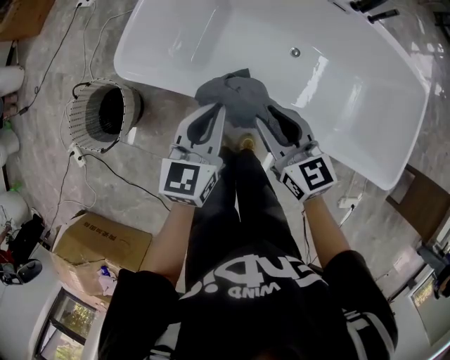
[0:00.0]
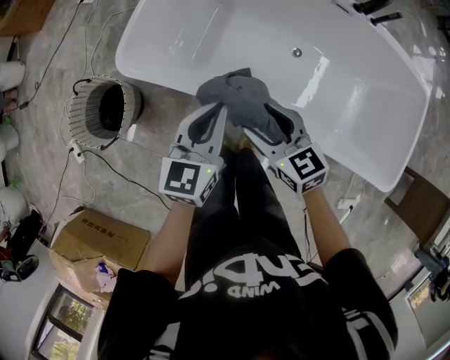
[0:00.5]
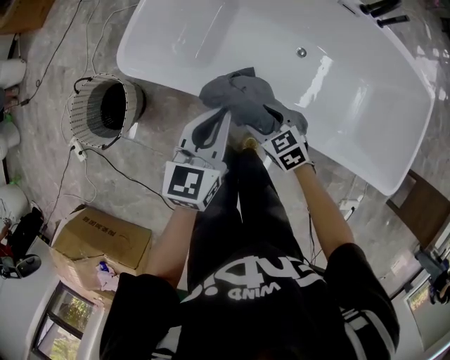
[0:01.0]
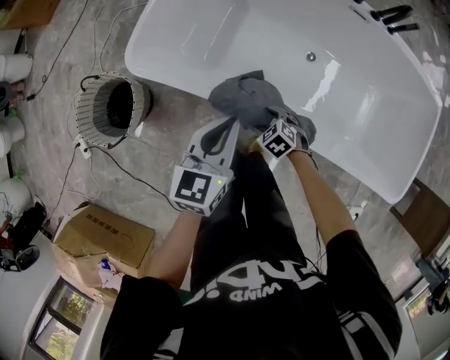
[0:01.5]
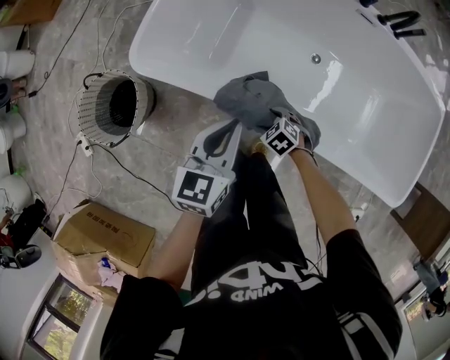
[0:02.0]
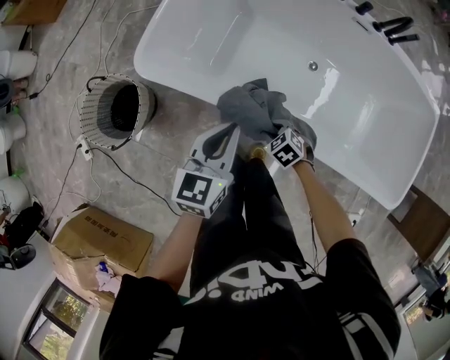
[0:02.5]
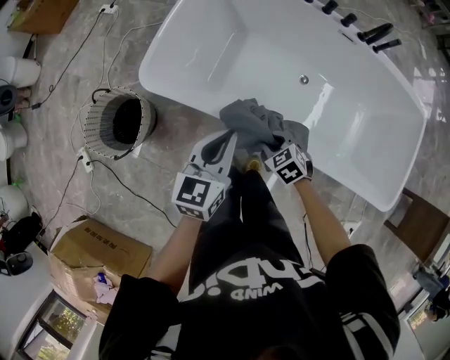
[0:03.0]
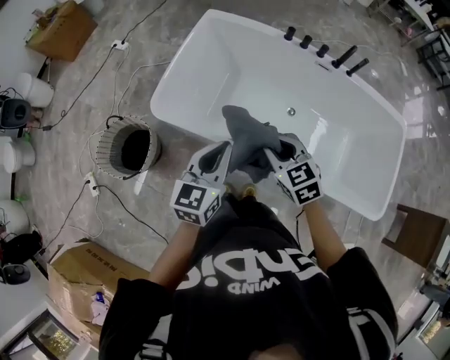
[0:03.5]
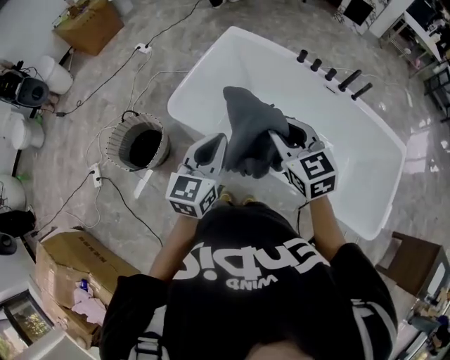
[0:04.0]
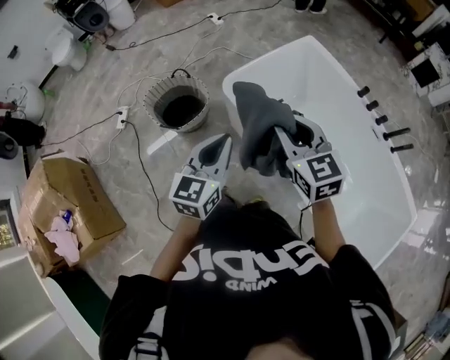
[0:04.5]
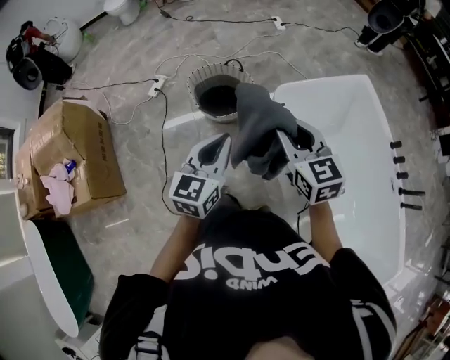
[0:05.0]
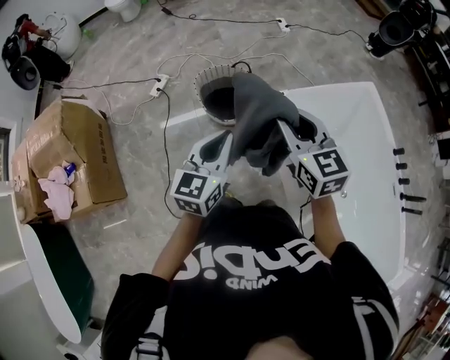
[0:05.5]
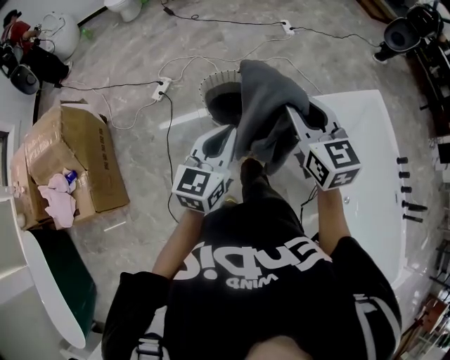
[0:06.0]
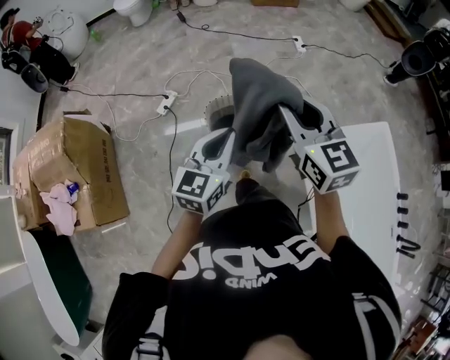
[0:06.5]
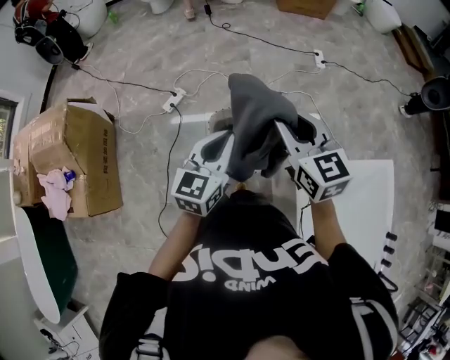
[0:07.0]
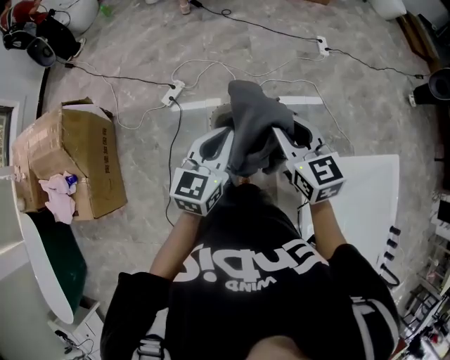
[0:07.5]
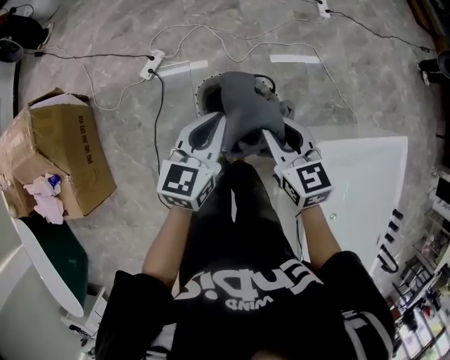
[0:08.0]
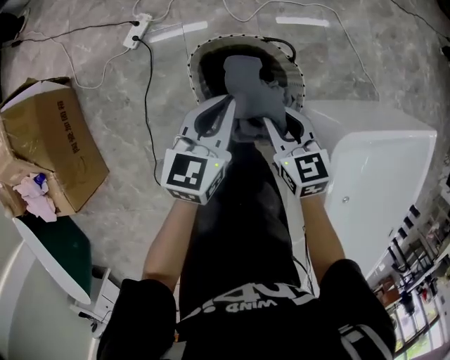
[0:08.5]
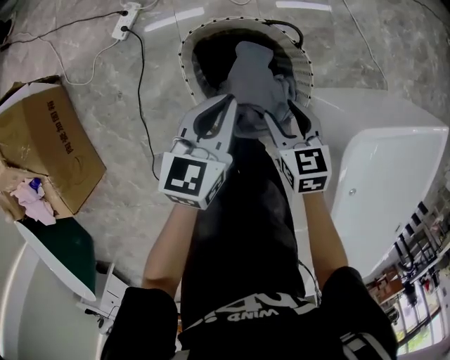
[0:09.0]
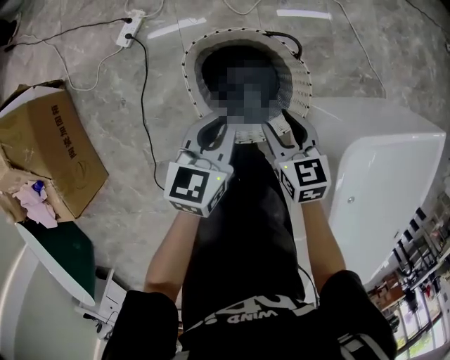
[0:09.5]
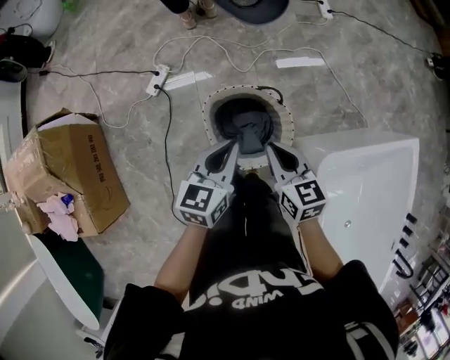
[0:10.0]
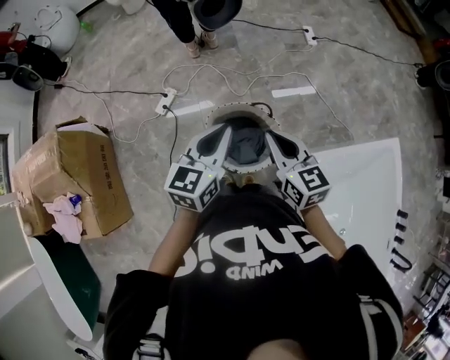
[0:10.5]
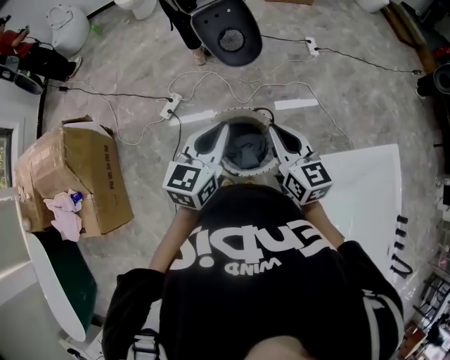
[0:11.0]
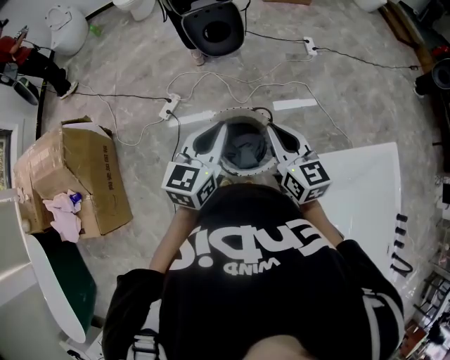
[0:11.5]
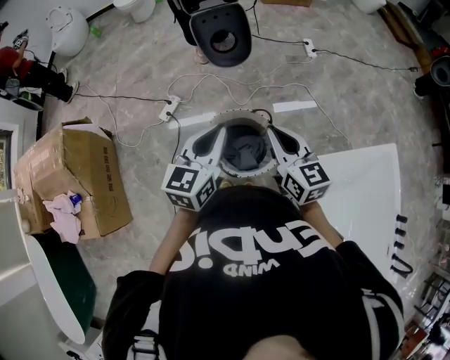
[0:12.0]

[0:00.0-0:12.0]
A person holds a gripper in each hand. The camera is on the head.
0:00.0 to 0:02.0: The right gripper heads downward, covering some 30 cm, tips its fingers downward by some 50 degrees, and opens its fingers.
0:02.0 to 0:04.0: The right gripper is displaced upward by some 50 cm, points its fingers about 40 degrees further upward, and closes, while the left gripper heads upward, covering about 20 cm.
0:04.0 to 0:06.0: The two grippers travel together, about 40 cm. The left gripper turns by approximately 40 degrees; the right gripper changes its angle by some 40 degrees.
0:06.0 to 0:08.0: The left gripper is displaced forward by some 35 cm. The right gripper is displaced forward and downward by about 35 cm, and changes its angle by roughly 20 degrees.
0:08.0 to 0:10.0: The left gripper reaches some 25 cm downward, then returns. Meanwhile the right gripper reaches about 30 cm downward, then returns, and opens and closes again.
0:10.0 to 0:12.0: The grippers both shift upward by approximately 20 cm.

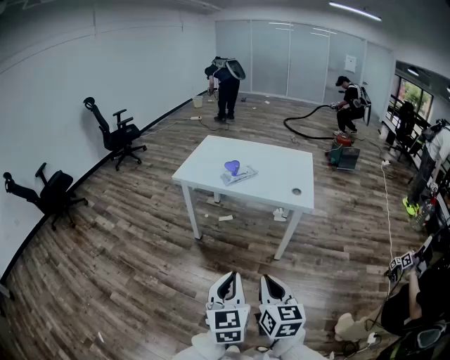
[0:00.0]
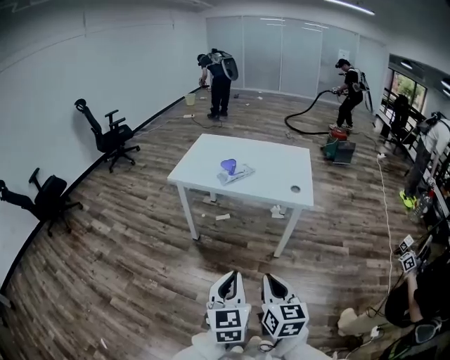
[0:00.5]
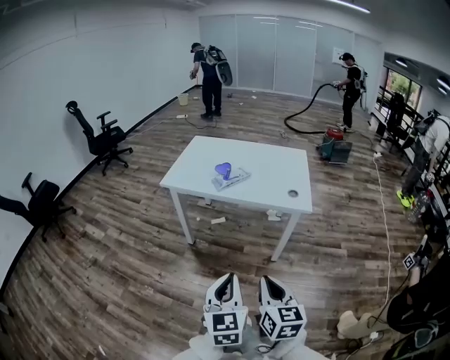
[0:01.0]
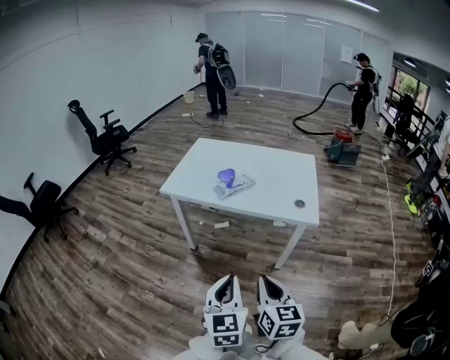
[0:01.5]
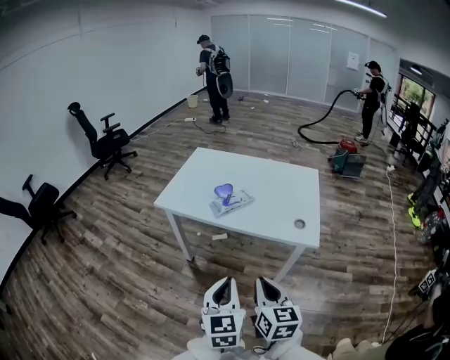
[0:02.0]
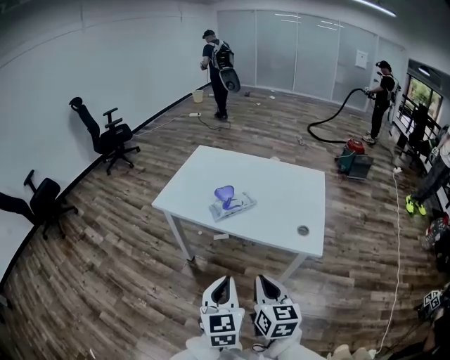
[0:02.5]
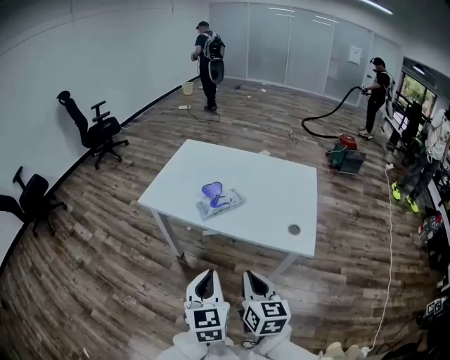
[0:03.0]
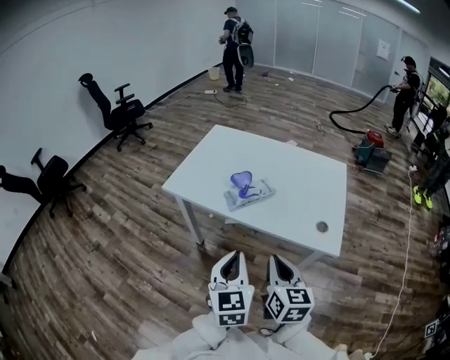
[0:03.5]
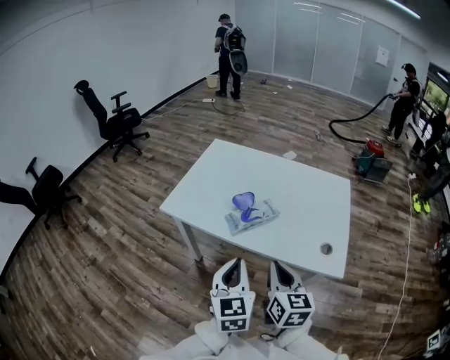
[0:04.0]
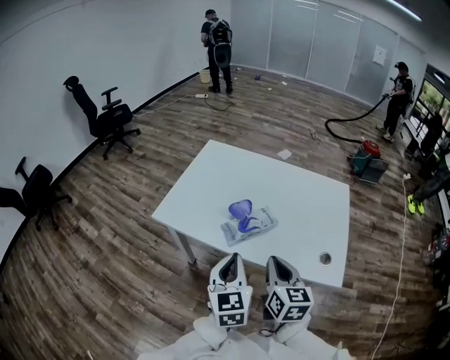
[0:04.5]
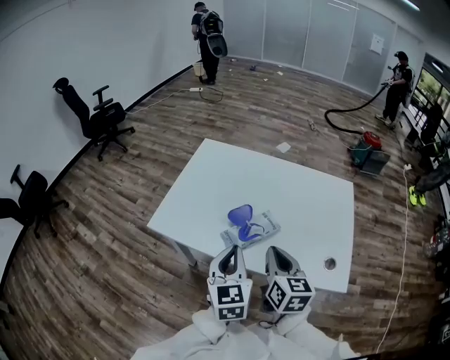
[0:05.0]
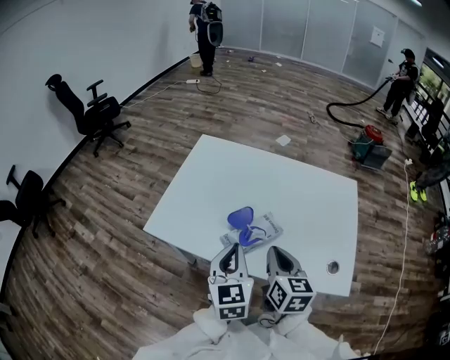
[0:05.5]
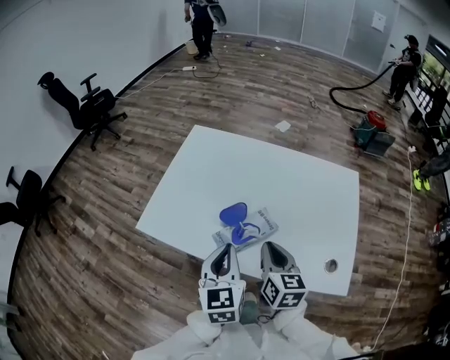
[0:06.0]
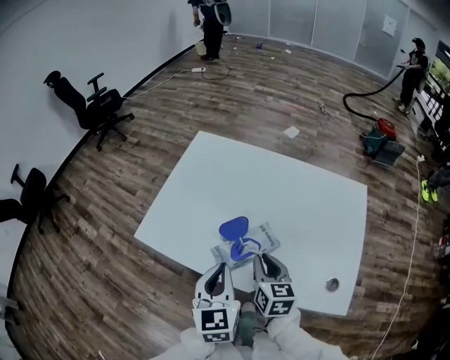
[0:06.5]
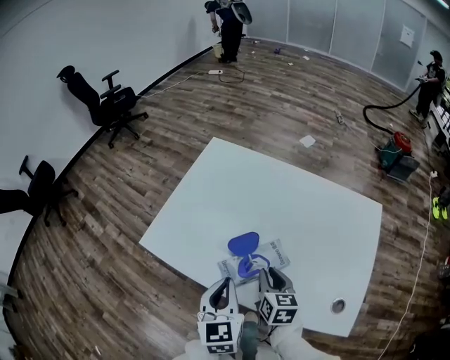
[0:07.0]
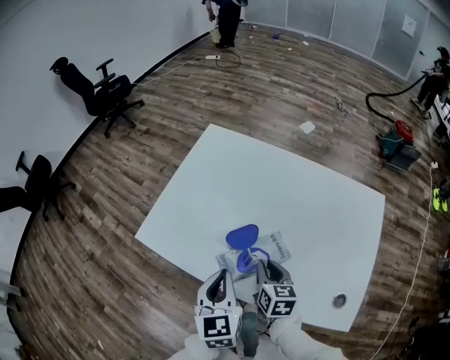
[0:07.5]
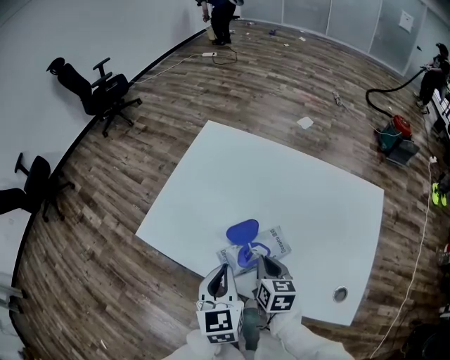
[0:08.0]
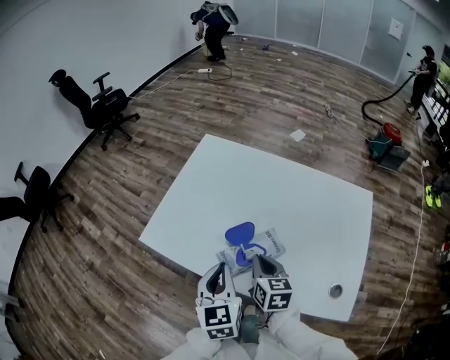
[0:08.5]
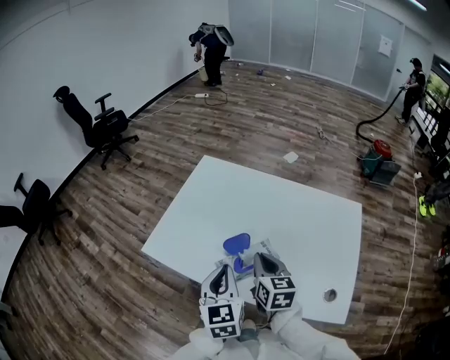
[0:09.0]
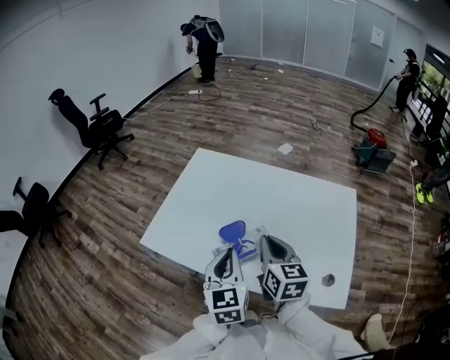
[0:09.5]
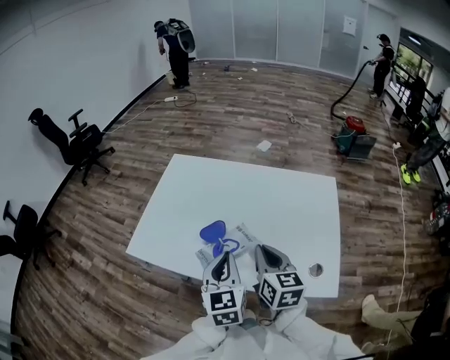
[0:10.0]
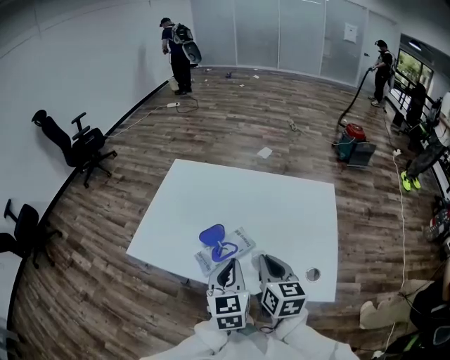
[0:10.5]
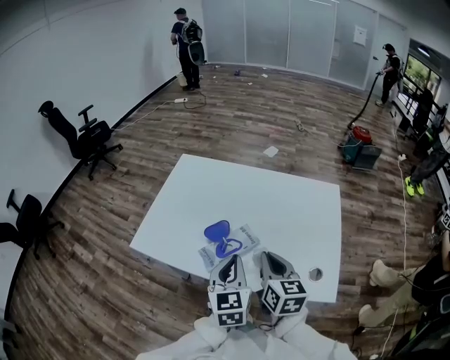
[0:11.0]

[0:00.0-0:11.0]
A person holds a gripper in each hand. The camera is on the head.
0:00.0 to 0:02.0: The grippers both shift forward by about 25 cm.
0:02.0 to 0:03.5: The grippers both shift forward by about 15 cm.
0:03.5 to 0:05.5: The two grippers go about 25 cm forward.
0:05.5 to 0:07.5: The right gripper heads downward and forward, covering about 15 cm. Meanwhile the left gripper shifts about 5 cm downward.
0:07.5 to 0:09.0: The left gripper heads upward, covering approximately 5 cm. Meanwhile the right gripper heads upward, covering some 10 cm.
0:09.0 to 0:11.0: The right gripper travels backward and to the right by approximately 10 cm; the left gripper travels to the right by some 10 cm.

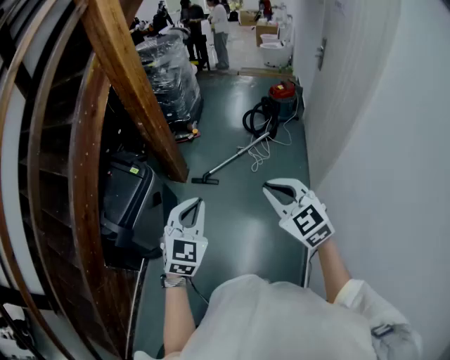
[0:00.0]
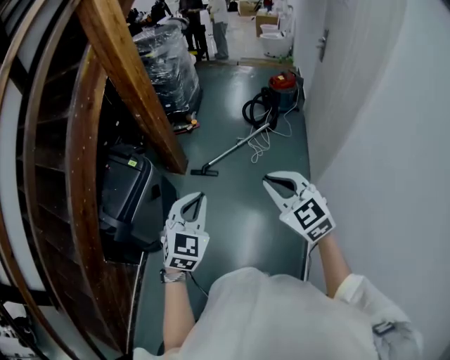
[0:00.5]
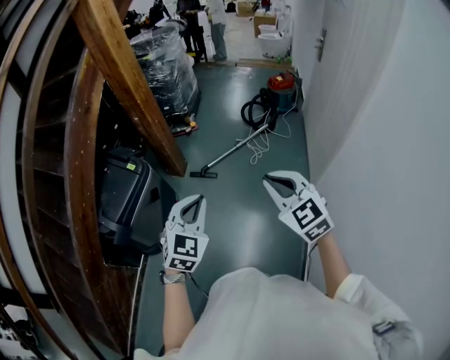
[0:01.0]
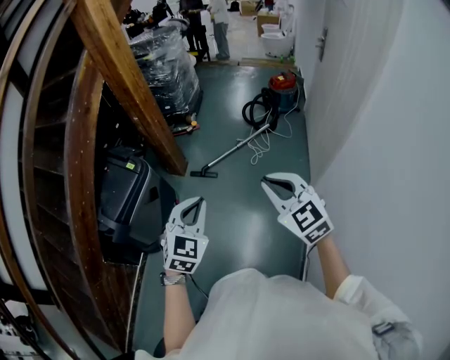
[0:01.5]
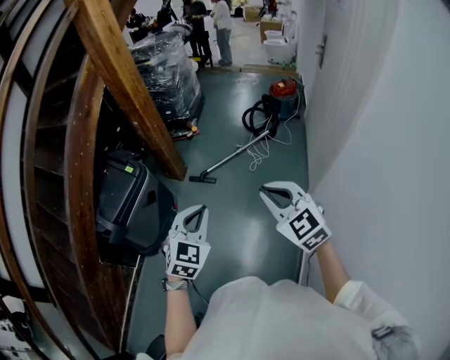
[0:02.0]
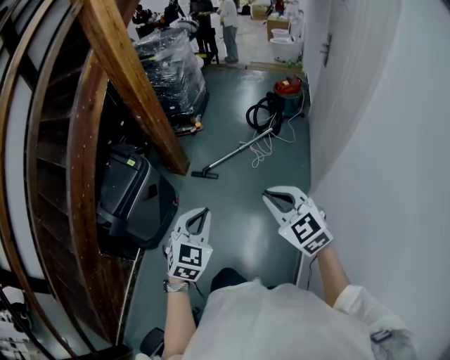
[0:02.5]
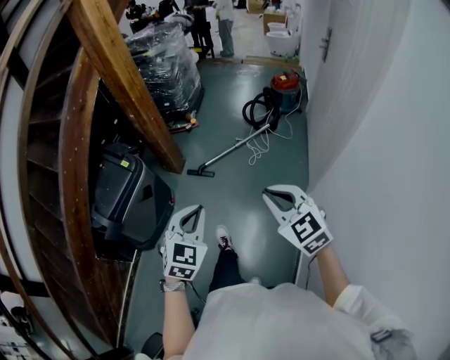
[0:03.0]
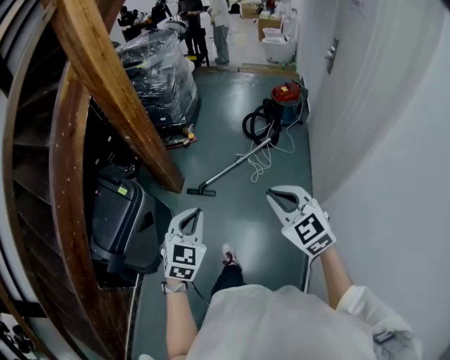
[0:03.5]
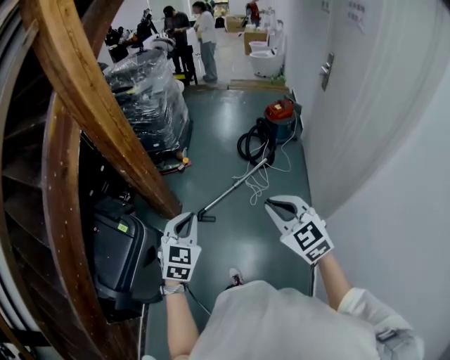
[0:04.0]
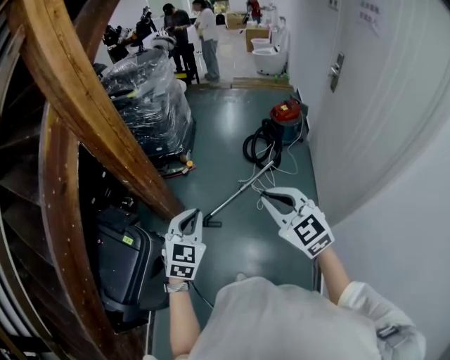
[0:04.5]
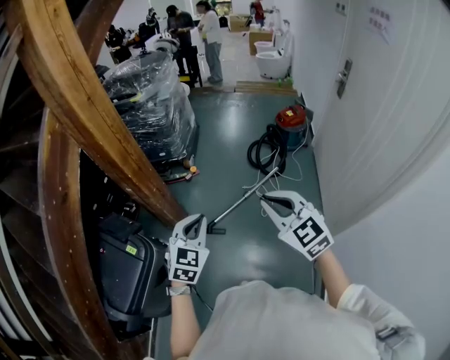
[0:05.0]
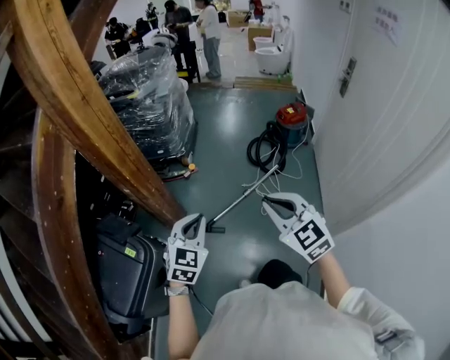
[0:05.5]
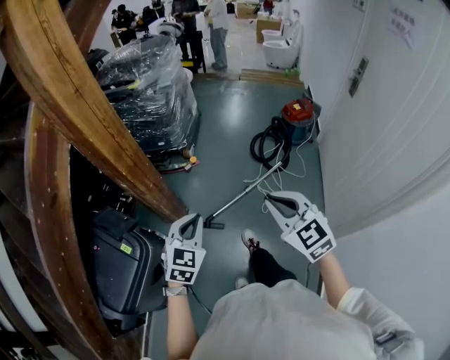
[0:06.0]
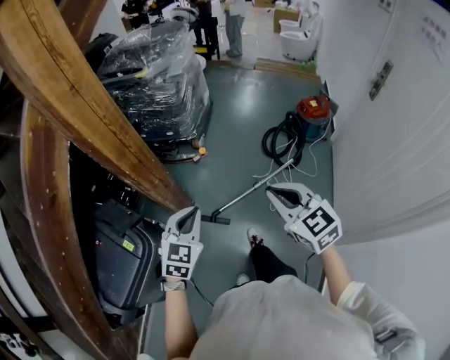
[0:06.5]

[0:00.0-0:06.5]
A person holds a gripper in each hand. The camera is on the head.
0:00.0 to 0:02.0: The two grippers go about 5 cm to the right.
0:02.0 to 0:04.5: Both grippers travel together forward, approximately 40 cm.
0:04.5 to 0:06.5: Both grippers travel together forward, about 15 cm.
